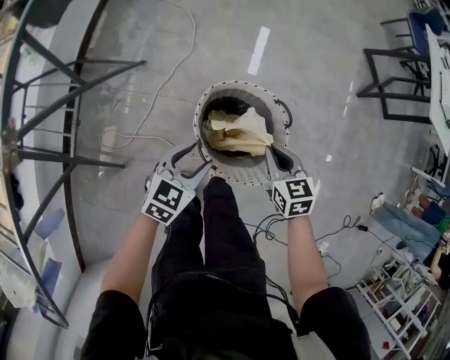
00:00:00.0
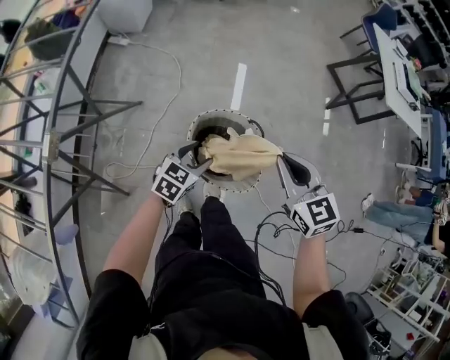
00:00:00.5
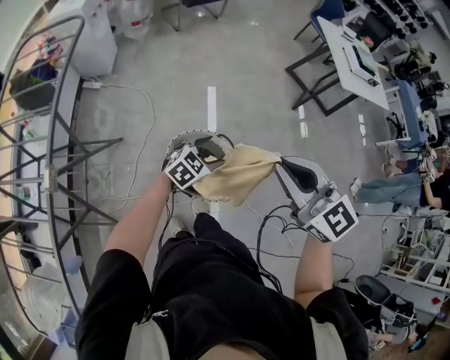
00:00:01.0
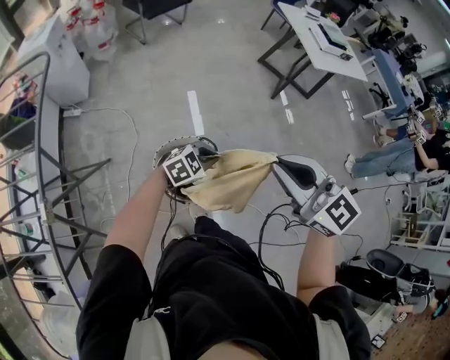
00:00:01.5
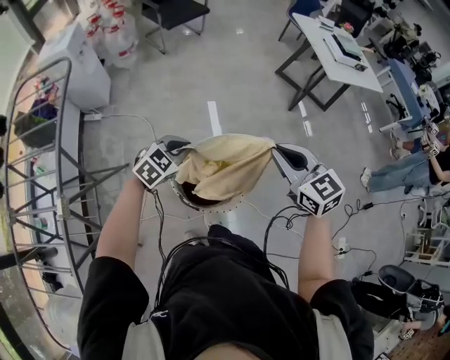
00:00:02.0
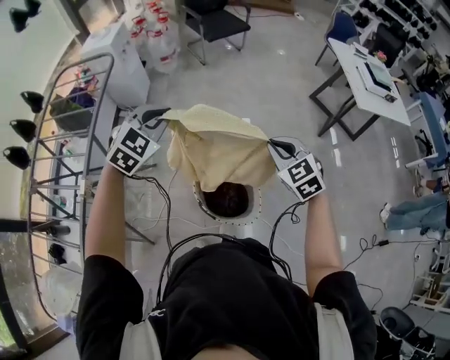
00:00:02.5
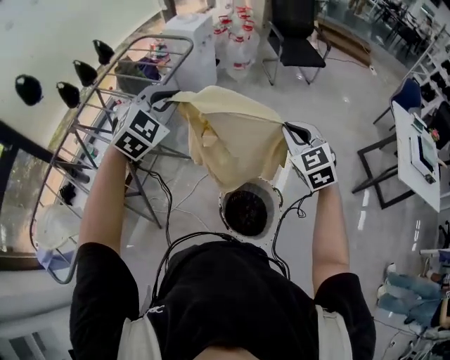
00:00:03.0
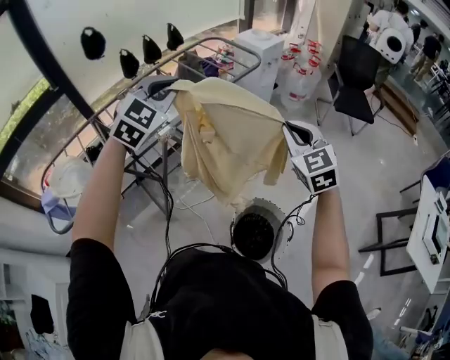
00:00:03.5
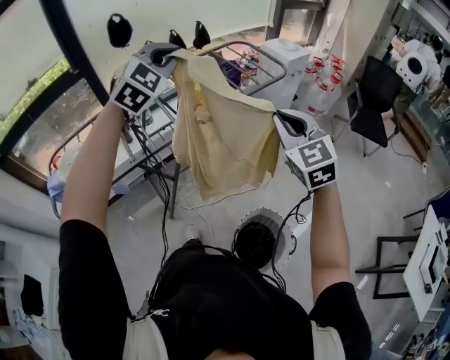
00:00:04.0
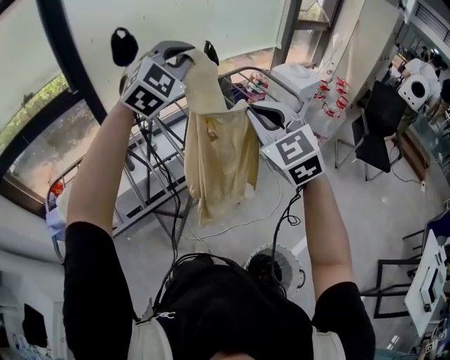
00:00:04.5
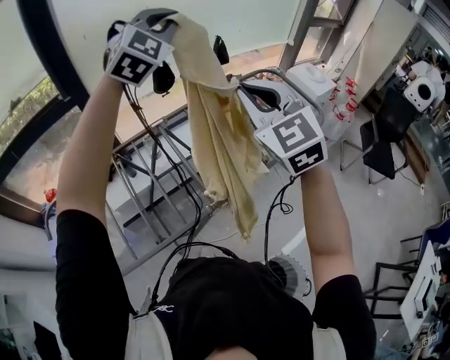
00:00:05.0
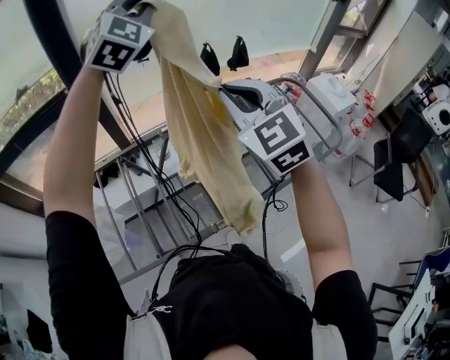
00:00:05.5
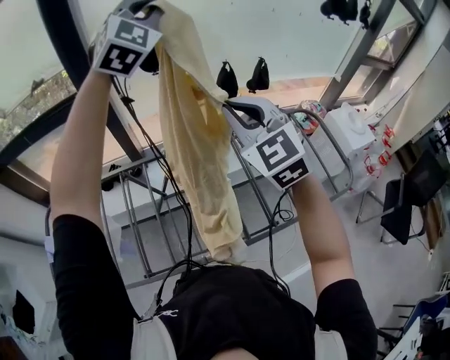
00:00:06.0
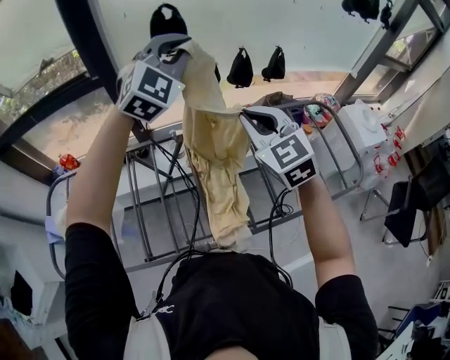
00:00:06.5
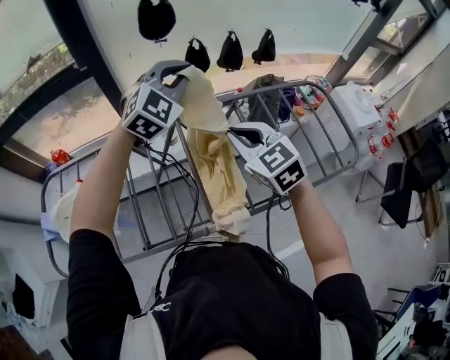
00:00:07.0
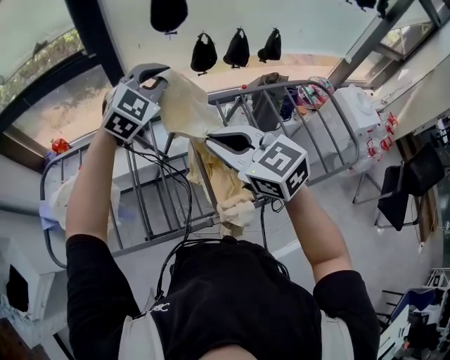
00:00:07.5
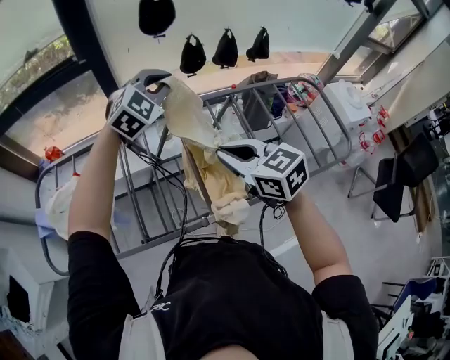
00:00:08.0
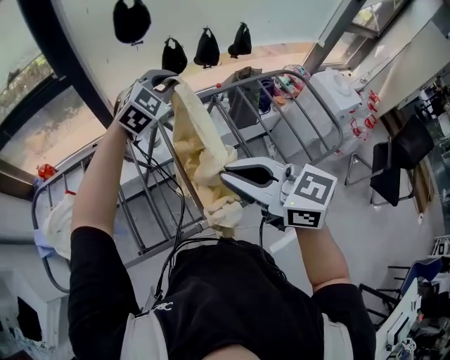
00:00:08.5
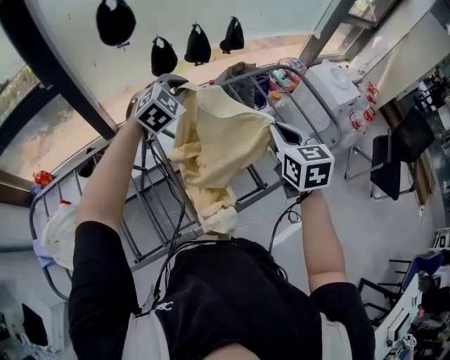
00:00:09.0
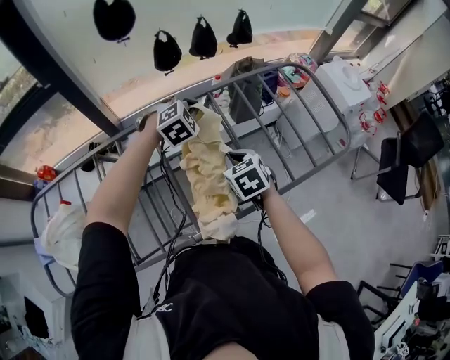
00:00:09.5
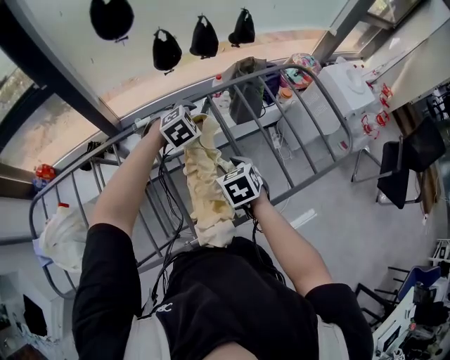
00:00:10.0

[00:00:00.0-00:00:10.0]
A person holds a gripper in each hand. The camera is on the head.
00:00:00.0 to 00:00:02.0: The left gripper is displaced upward and forward by roughly 30 cm, rotates roughly 40 degrees, and closes its fingers. Meanwhile the right gripper travels upward by approximately 40 cm, and rotates roughly 30 degrees.
00:00:02.0 to 00:00:04.0: The pair of grippers is taken some 40 cm. The right gripper swivels roughly 60 degrees, while the left gripper turns by approximately 80 degrees.
00:00:04.0 to 00:00:06.0: The two grippers travel together, approximately 60 cm. The right gripper swivels some 30 degrees. Meanwhile the left gripper swivels approximately 30 degrees.
00:00:06.0 to 00:00:08.0: The right gripper moves up and down over approximately 15 cm, changing direction 2 times, and changes its angle by roughly 40 degrees; the left gripper heads downward, covering some 30 cm, and turns by about 30 degrees.
00:00:08.0 to 00:00:10.0: Both grippers travel together downward, approximately 20 cm. The left gripper tilts its fingers approximately 30 degrees downward, and opens its fingers, while the right gripper rotates some 40 degrees, and opens up.

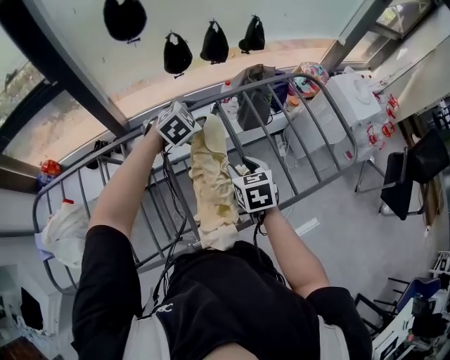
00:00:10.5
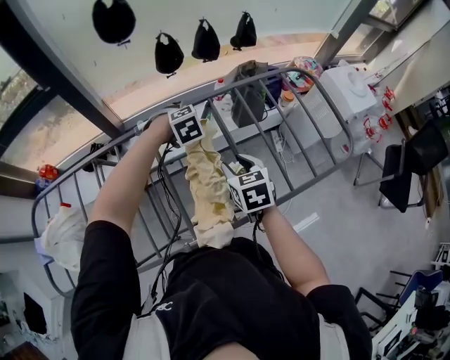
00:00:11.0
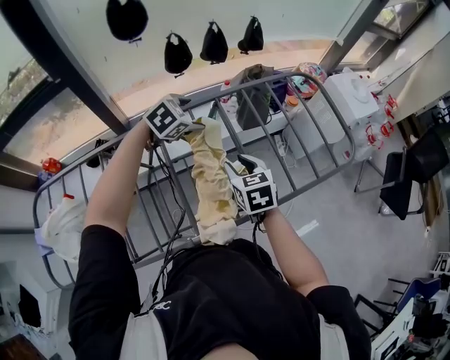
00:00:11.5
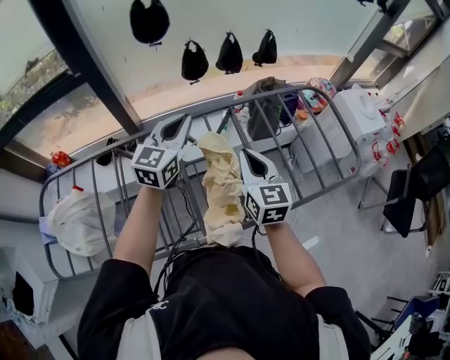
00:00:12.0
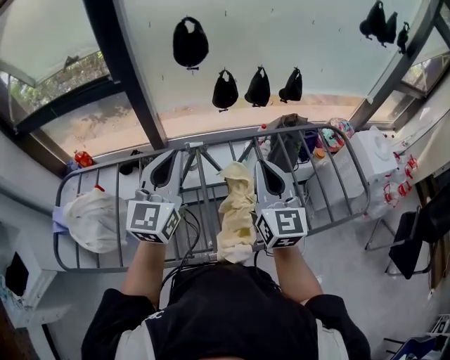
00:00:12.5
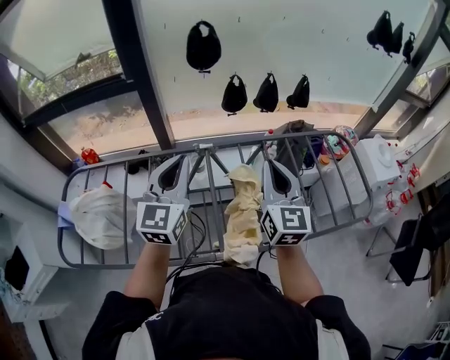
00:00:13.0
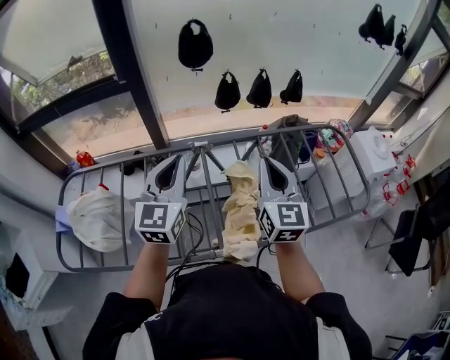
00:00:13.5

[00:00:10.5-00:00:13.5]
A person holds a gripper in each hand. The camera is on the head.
00:00:10.5 to 00:00:12.0: The left gripper heads upward, backward and to the left, covering about 20 cm, angles its fingers upward, by roughly 40 degrees, and closes its fingers, while the right gripper is displaced upward by approximately 10 cm, points its fingers about 30 degrees further upward, and closes its fingers.
00:00:12.0 to 00:00:13.5: The left gripper moves backward, to the left and upward, some 20 cm, and changes its angle by approximately 20 degrees; the right gripper shifts about 10 cm upward.

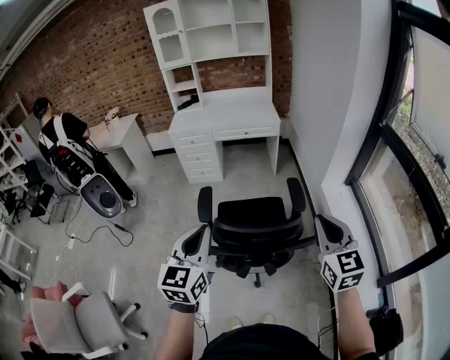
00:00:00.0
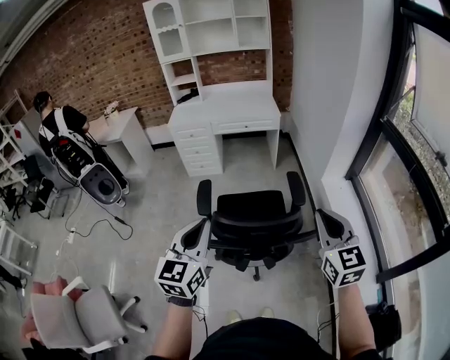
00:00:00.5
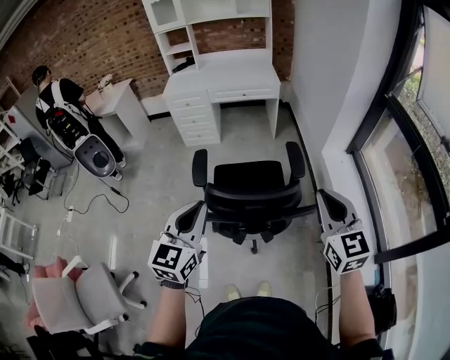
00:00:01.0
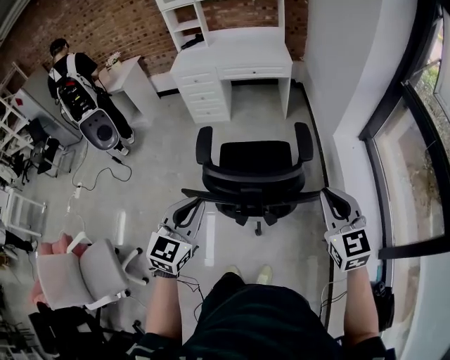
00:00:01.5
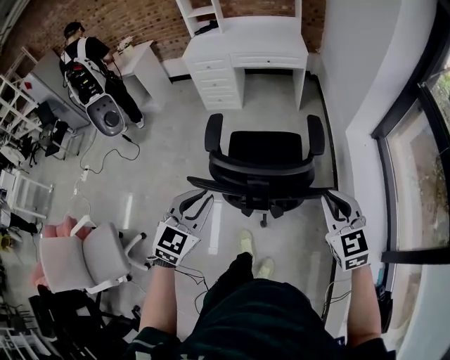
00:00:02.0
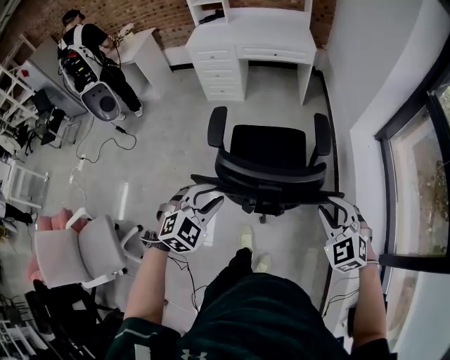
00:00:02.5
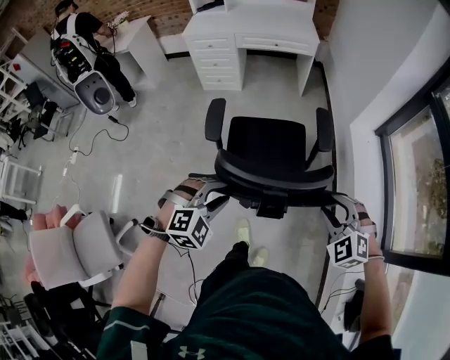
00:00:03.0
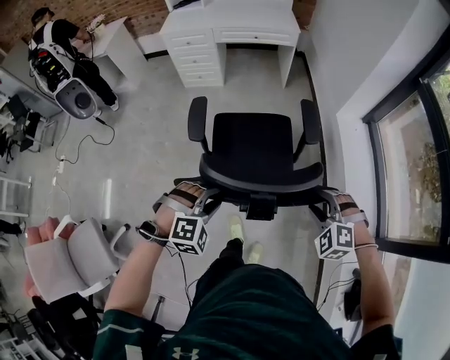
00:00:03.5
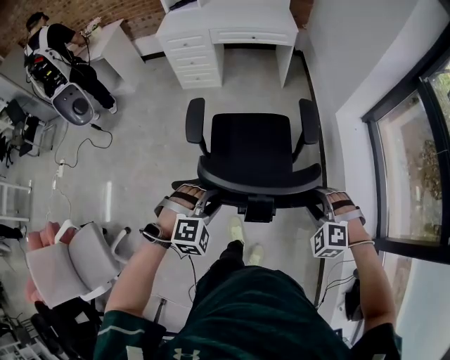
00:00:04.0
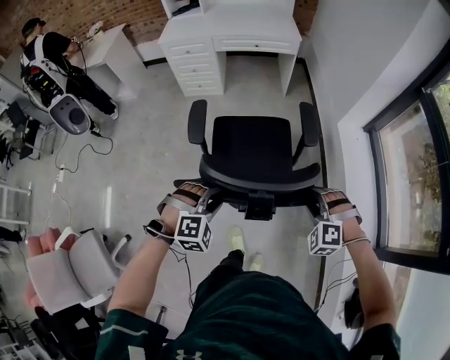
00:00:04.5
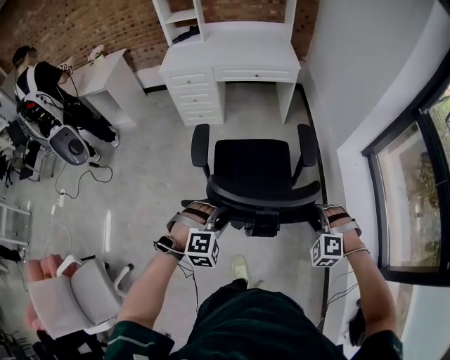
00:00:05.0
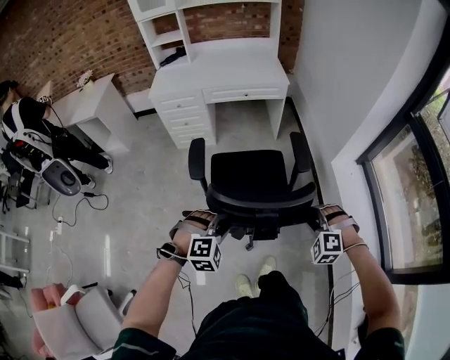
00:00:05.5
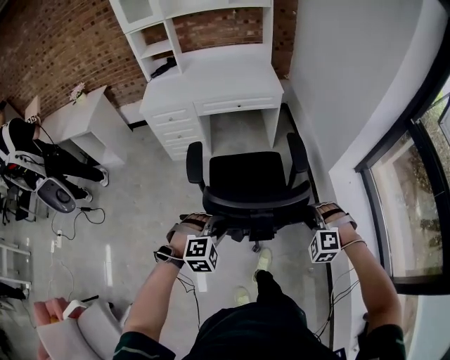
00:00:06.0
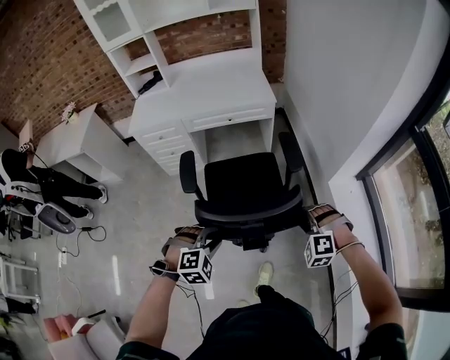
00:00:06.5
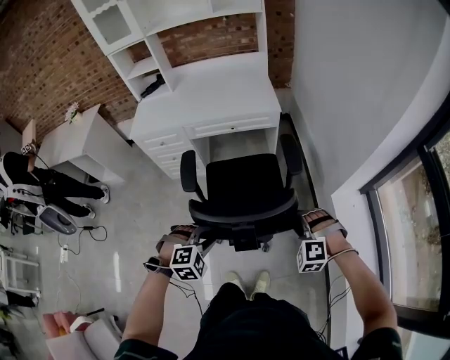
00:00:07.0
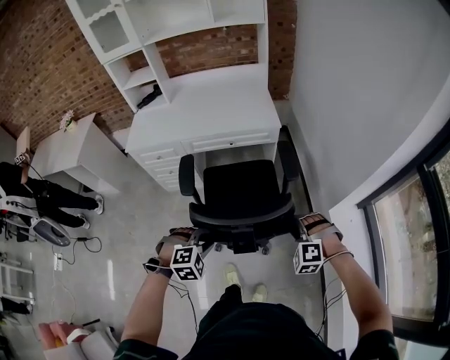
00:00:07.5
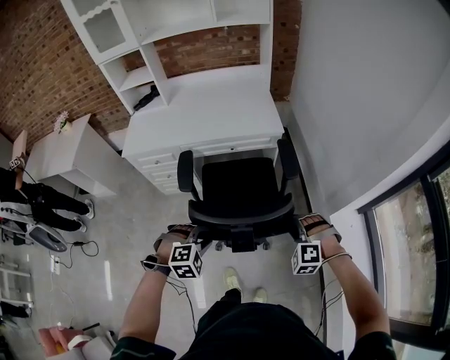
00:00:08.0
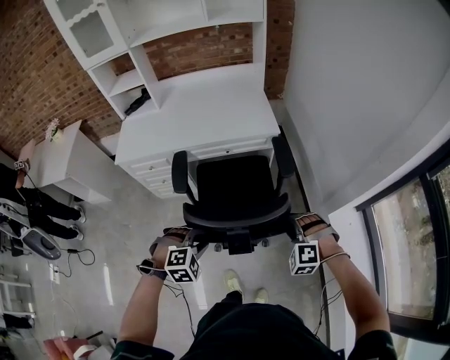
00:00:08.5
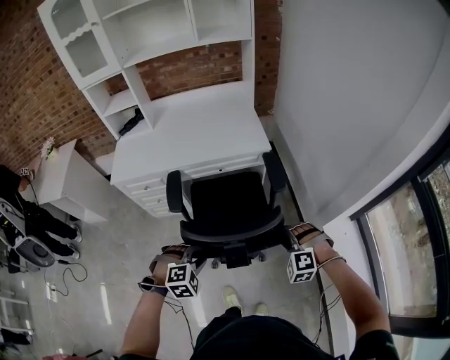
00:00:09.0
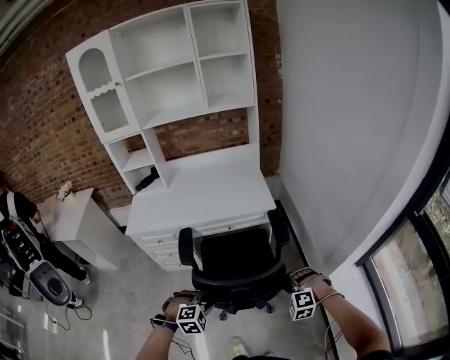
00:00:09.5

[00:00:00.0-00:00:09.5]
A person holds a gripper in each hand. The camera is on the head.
00:00:00.0 to 00:00:02.0: Both grippers move downward, approximately 15 cm. The right gripper rotates approximately 20 degrees; the left gripper turns by about 30 degrees.
00:00:02.0 to 00:00:04.0: The grippers both shift downward by roughly 15 cm. The right gripper rolls counterclockwise, seen from behind, by approximately 50 degrees, and opens, while the left gripper twists some 50 degrees clockwise, seen from behind, and opens.
00:00:04.0 to 00:00:05.5: The grippers both shift forward by roughly 20 cm.
00:00:05.5 to 00:00:07.5: Both grippers move forward, approximately 35 cm.
00:00:07.5 to 00:00:09.5: The grippers both shift forward by roughly 10 cm.

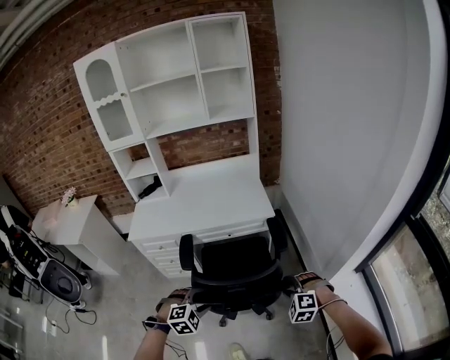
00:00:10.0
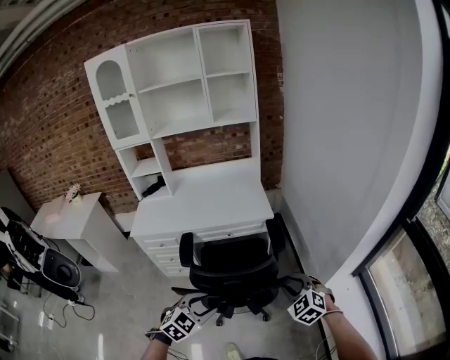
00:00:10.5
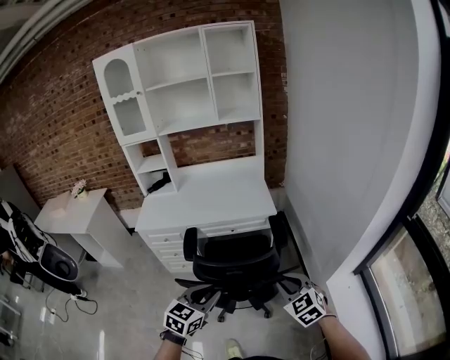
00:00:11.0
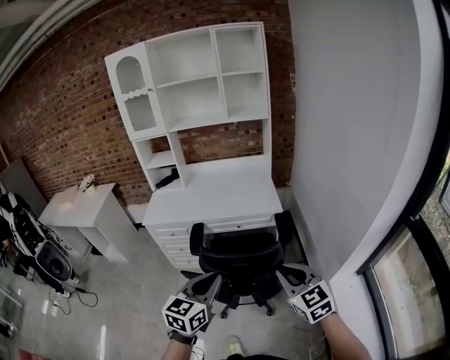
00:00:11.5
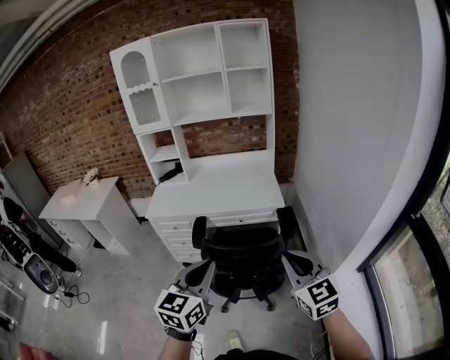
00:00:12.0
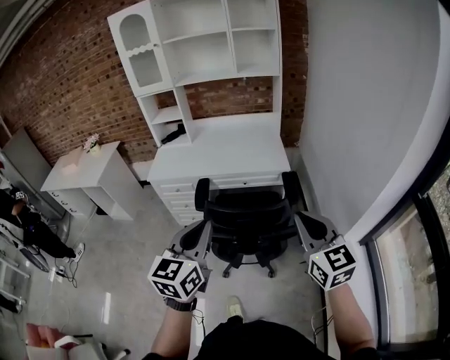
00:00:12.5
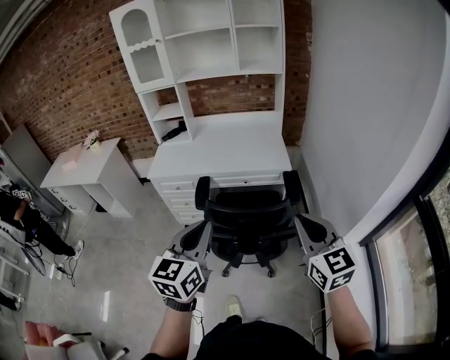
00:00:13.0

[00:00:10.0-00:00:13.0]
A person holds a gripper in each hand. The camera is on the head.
00:00:10.0 to 00:00:11.5: Both grippers travel together upward, some 20 cm. The left gripper tilts its fingers some 40 degrees upward, and closes up, while the right gripper angles its fingers upward, by roughly 30 degrees, and closes its fingers.
00:00:11.5 to 00:00:13.0: Both grippers travel together upward, roughly 5 cm.
